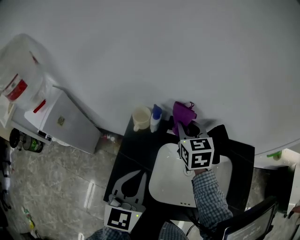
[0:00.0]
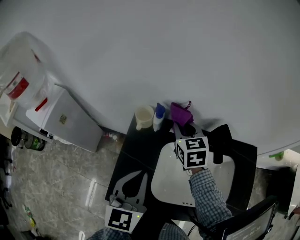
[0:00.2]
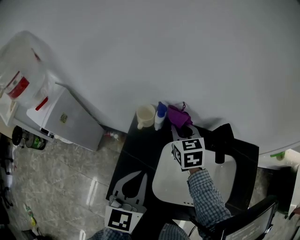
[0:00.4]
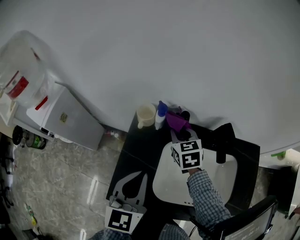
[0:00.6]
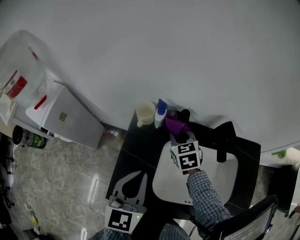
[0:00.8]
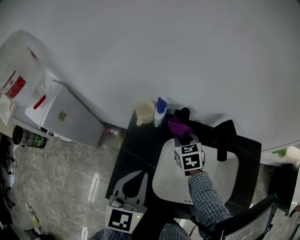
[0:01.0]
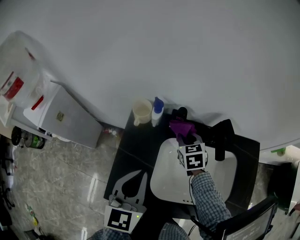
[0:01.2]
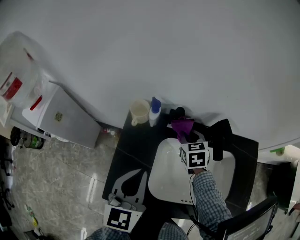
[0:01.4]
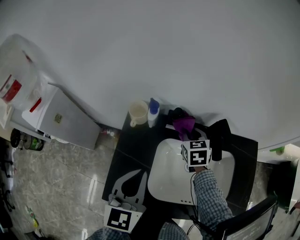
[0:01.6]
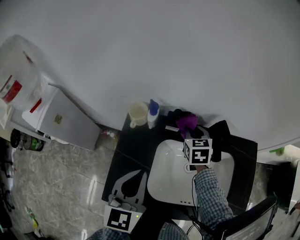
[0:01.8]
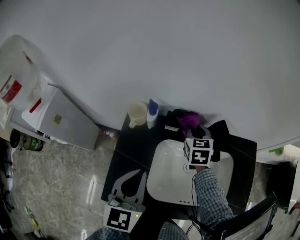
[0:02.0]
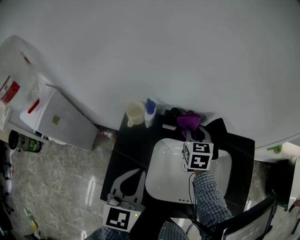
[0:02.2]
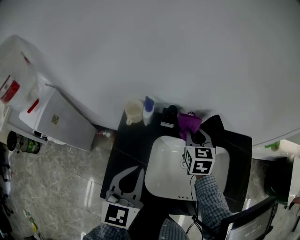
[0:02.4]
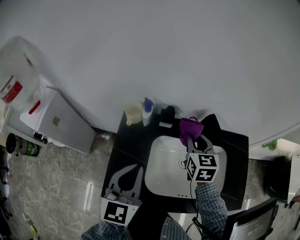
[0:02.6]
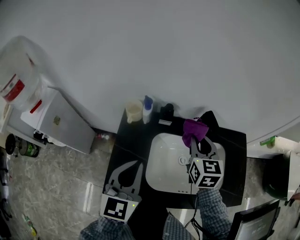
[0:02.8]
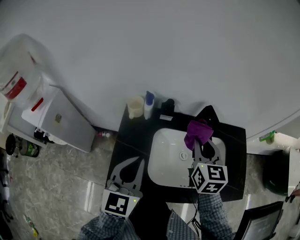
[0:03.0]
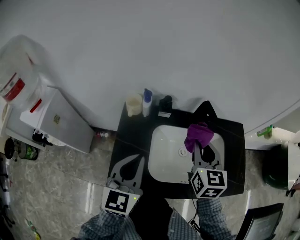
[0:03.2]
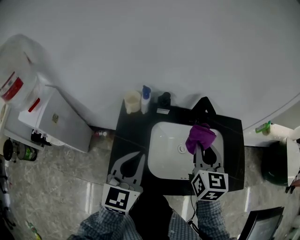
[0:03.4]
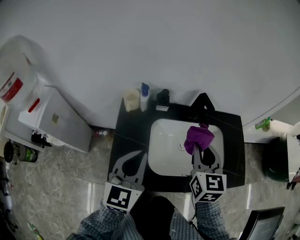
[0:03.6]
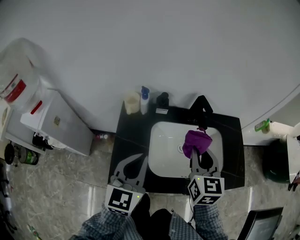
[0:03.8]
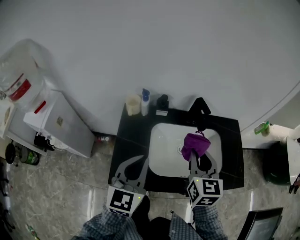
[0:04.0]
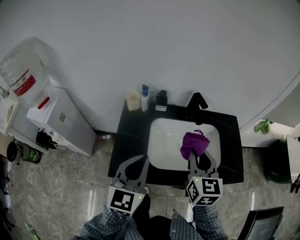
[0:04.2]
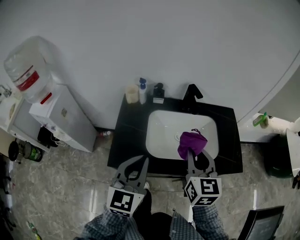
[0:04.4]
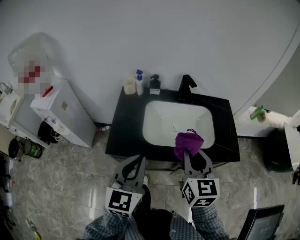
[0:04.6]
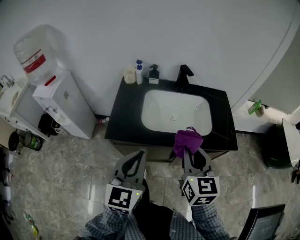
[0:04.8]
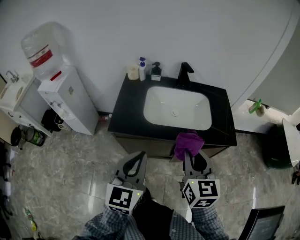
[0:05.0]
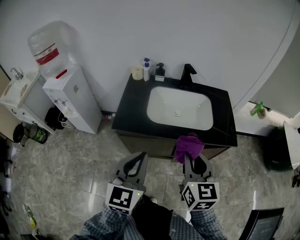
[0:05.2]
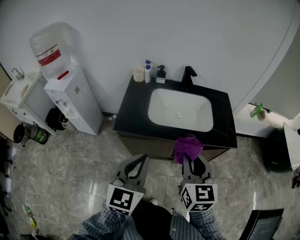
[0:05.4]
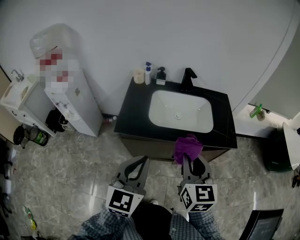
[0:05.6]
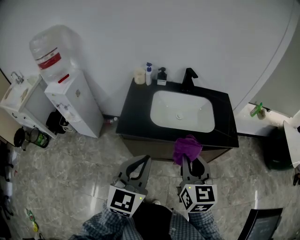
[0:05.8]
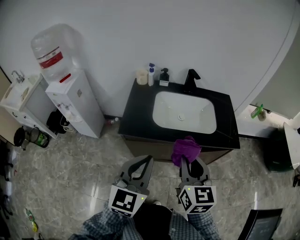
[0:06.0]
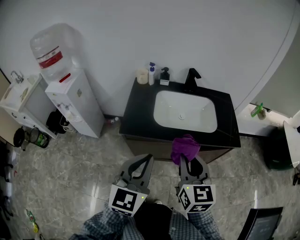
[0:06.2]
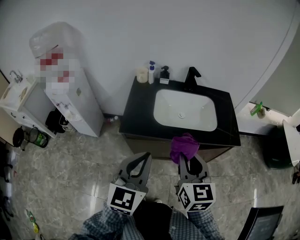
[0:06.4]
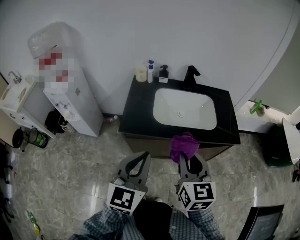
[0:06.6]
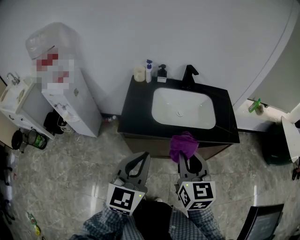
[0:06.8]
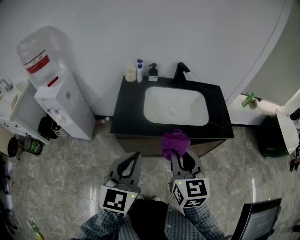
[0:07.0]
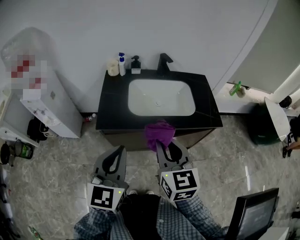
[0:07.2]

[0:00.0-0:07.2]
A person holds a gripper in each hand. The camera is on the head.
0:00.0 to 0:01.4: The right gripper shifts approximately 10 cm downward.
0:01.4 to 0:02.8: The right gripper travels upward and backward by approximately 15 cm, and rotates roughly 20 degrees.
0:02.8 to 0:04.4: The right gripper heads backward, covering about 25 cm. The left gripper moves backward, roughly 15 cm.
0:04.4 to 0:05.8: The two grippers go approximately 20 cm backward.
0:05.8 to 0:07.2: The grippers make only small movements.

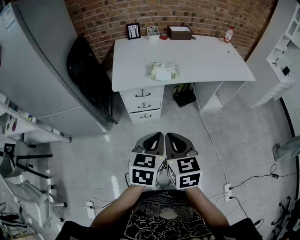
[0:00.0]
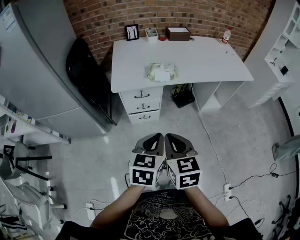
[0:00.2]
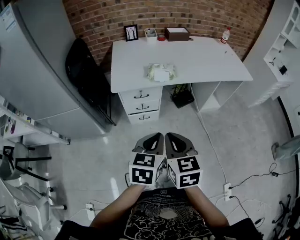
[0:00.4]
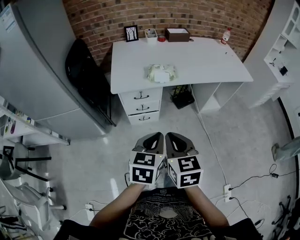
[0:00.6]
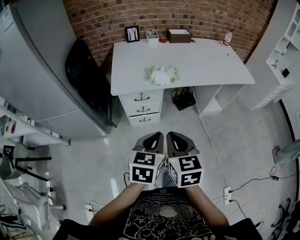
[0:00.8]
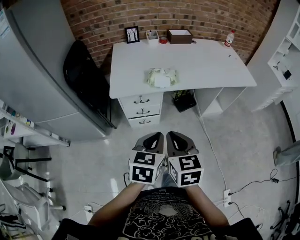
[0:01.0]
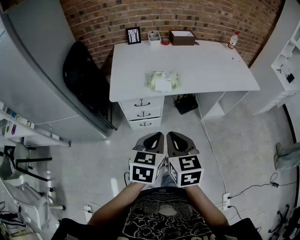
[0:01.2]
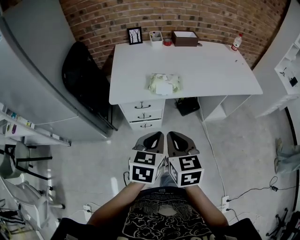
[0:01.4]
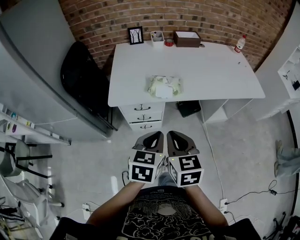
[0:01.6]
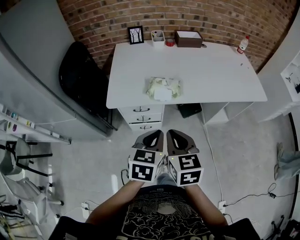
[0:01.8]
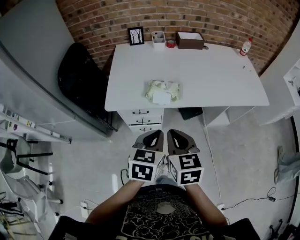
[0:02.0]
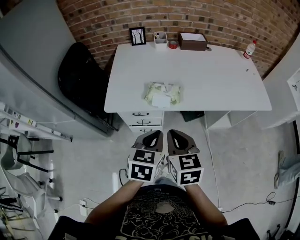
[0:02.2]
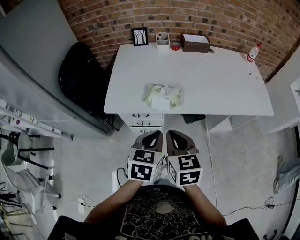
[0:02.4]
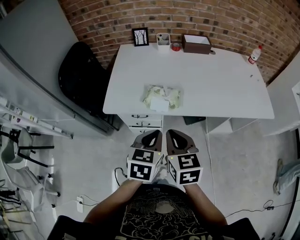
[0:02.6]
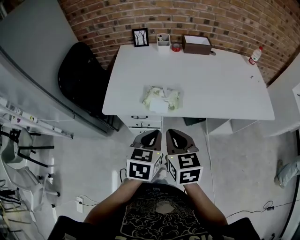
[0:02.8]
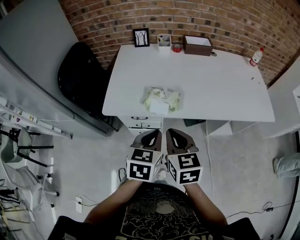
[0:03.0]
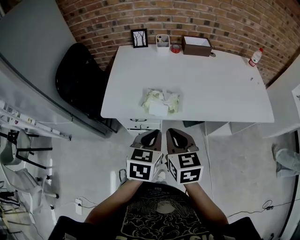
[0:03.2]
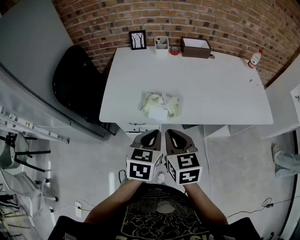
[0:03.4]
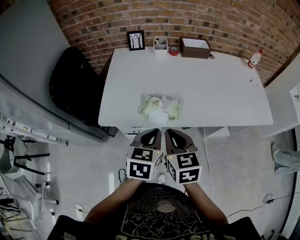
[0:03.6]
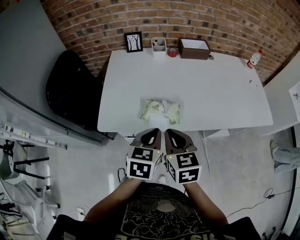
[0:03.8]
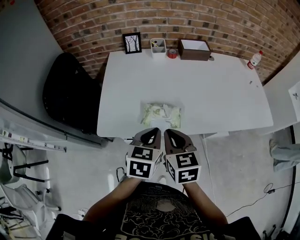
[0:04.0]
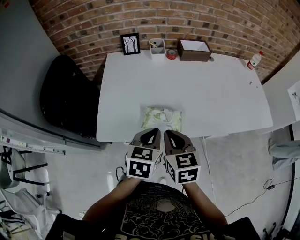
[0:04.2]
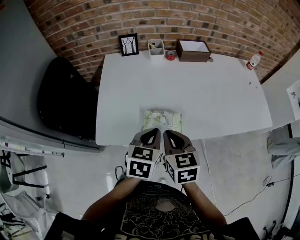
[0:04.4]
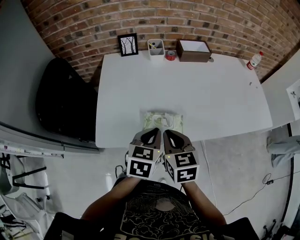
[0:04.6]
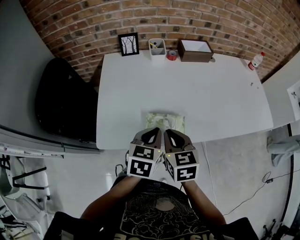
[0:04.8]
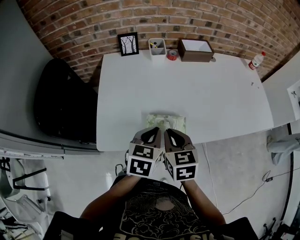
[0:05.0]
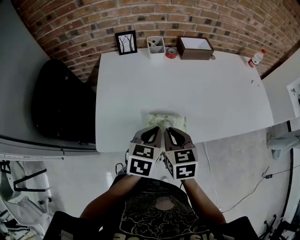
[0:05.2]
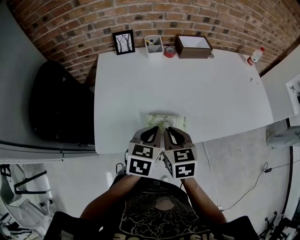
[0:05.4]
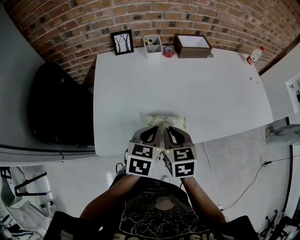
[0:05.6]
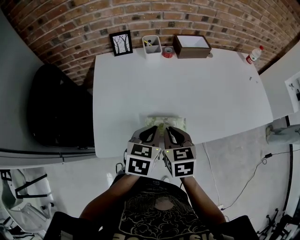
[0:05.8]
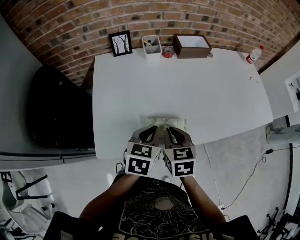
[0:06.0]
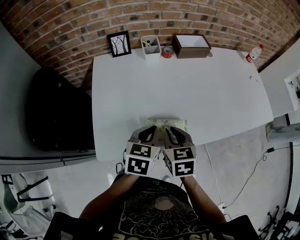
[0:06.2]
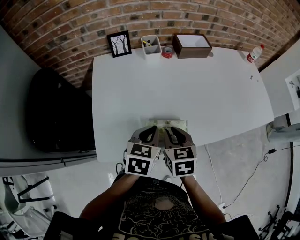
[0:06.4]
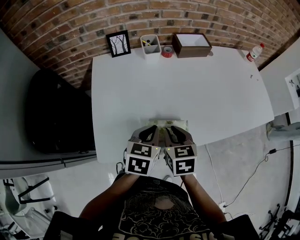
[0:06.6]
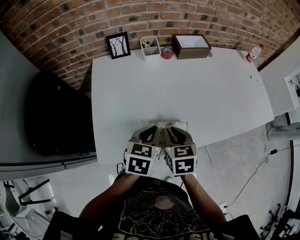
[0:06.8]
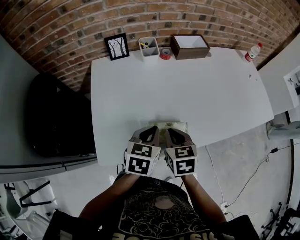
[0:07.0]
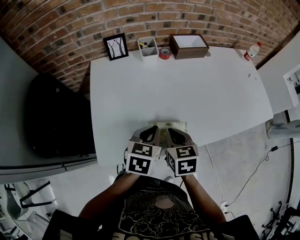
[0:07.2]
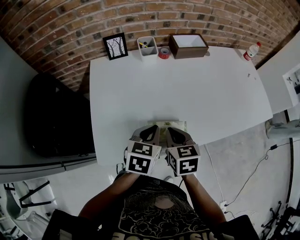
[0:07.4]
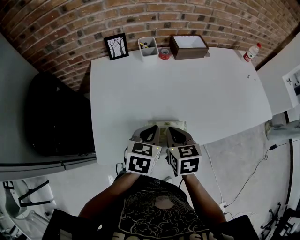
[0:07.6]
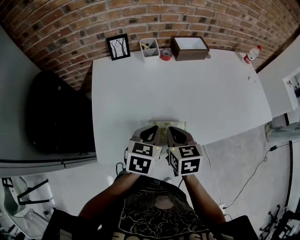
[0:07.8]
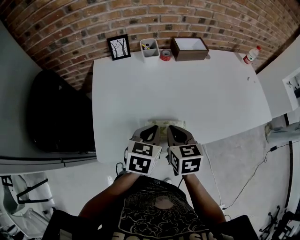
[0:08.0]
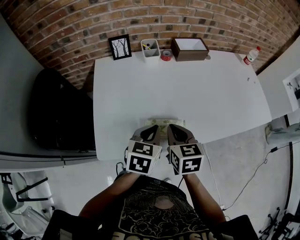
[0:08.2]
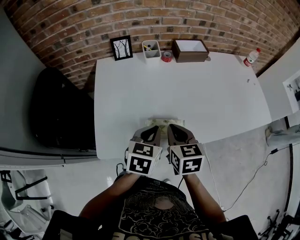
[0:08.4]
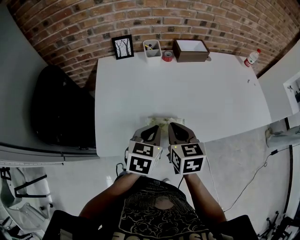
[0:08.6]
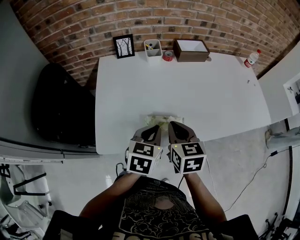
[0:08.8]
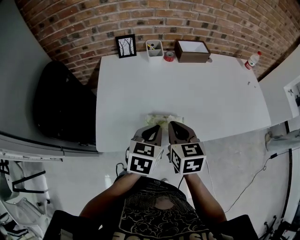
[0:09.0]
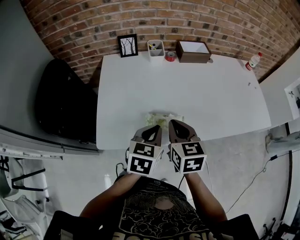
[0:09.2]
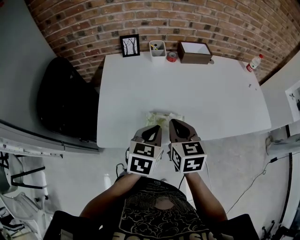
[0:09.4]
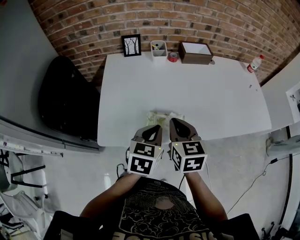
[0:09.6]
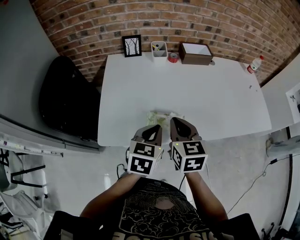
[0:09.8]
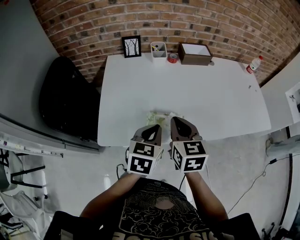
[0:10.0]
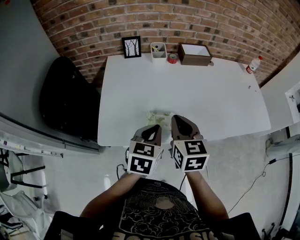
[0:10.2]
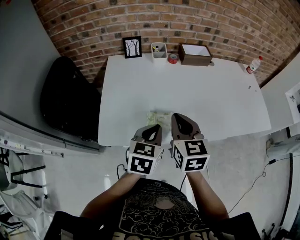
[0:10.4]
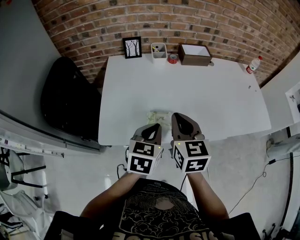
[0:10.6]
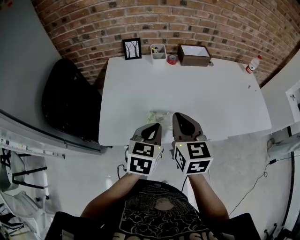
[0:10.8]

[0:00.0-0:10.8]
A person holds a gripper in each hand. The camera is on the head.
0:00.0 to 0:01.6: Both grippers travel together forward, about 15 cm.
0:01.6 to 0:03.0: The grippers both shift forward and to the right by some 15 cm.
0:03.0 to 0:04.6: Both grippers travel together forward, about 15 cm.
0:04.6 to 0:06.2: The two grippers go some 5 cm forward.
0:06.2 to 0:07.8: There are only small adjustments of the grippers.
0:07.8 to 0:09.2: The left gripper changes place by roughly 5 cm. The right gripper heads upward, covering some 5 cm.
0:09.2 to 0:10.8: The right gripper is displaced upward by some 5 cm.

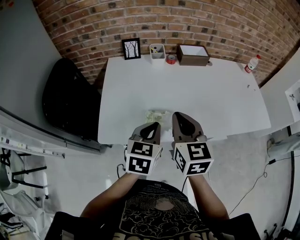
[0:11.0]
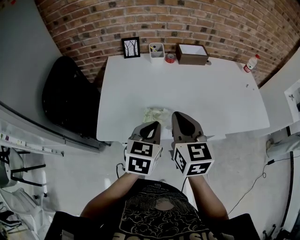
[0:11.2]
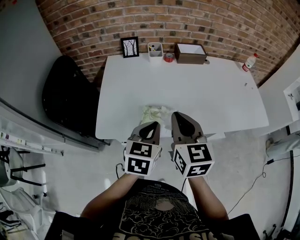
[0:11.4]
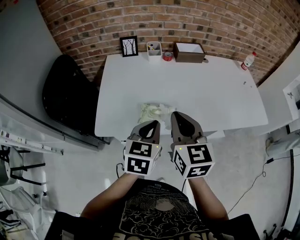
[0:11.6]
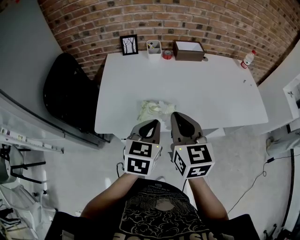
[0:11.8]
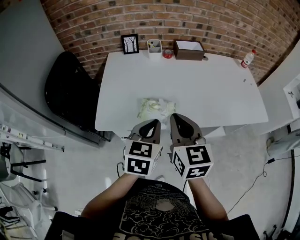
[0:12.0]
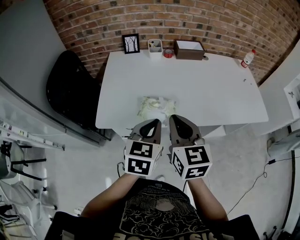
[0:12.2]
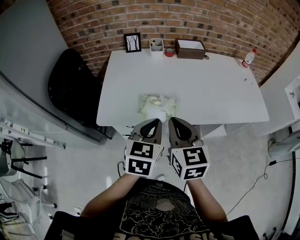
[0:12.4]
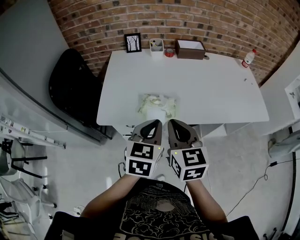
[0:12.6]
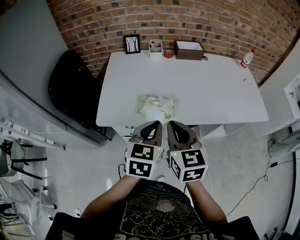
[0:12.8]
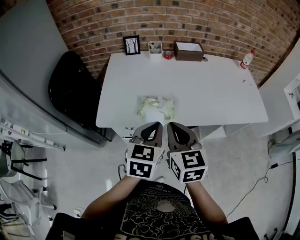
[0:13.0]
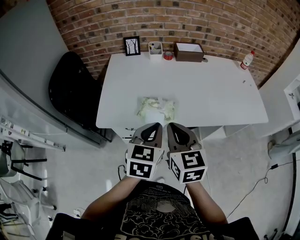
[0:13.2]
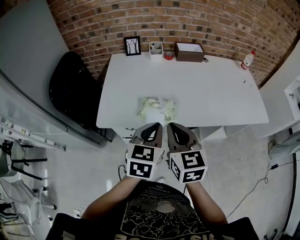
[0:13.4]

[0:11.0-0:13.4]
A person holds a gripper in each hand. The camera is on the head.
0:11.0 to 0:12.2: Both grippers travel together backward, about 10 cm.
0:12.2 to 0:13.4: There are only small adjustments of the grippers.

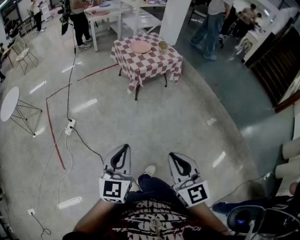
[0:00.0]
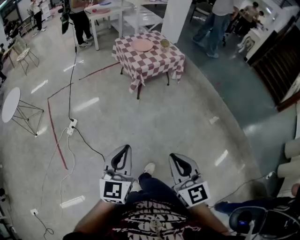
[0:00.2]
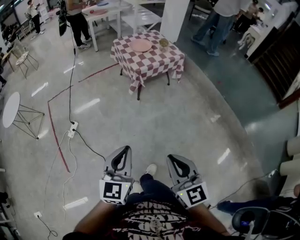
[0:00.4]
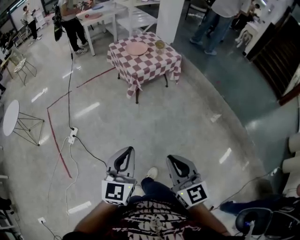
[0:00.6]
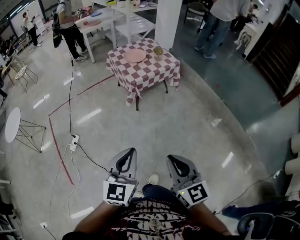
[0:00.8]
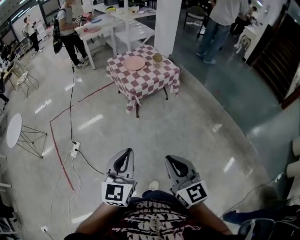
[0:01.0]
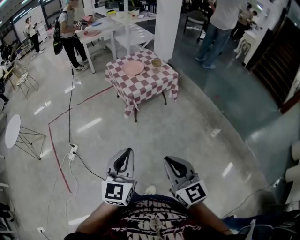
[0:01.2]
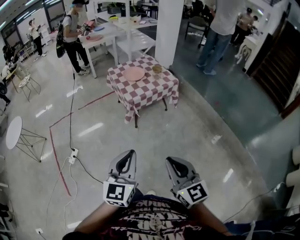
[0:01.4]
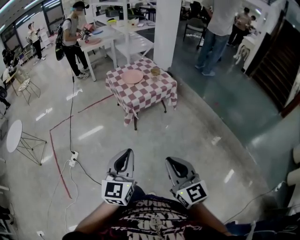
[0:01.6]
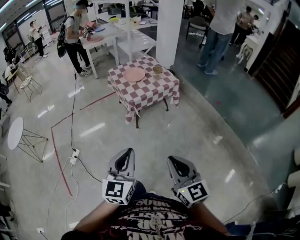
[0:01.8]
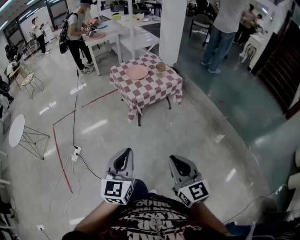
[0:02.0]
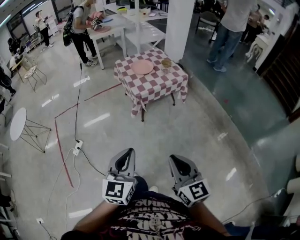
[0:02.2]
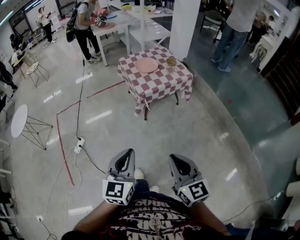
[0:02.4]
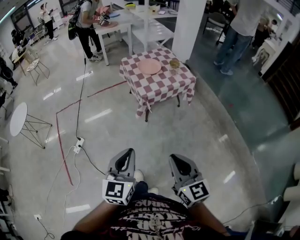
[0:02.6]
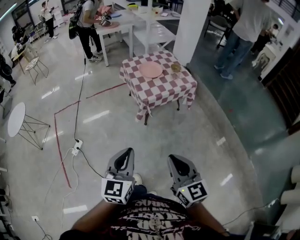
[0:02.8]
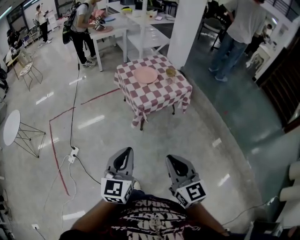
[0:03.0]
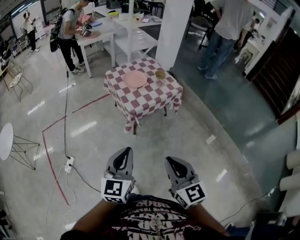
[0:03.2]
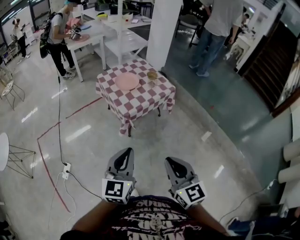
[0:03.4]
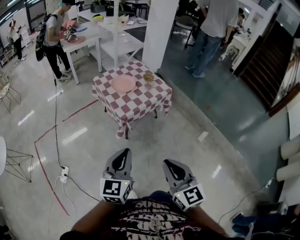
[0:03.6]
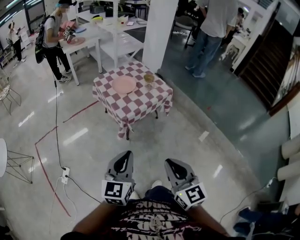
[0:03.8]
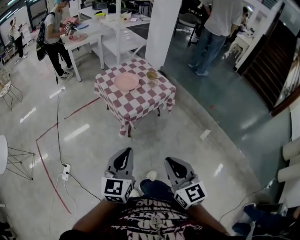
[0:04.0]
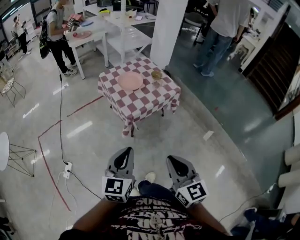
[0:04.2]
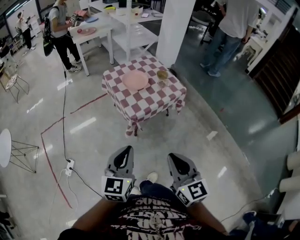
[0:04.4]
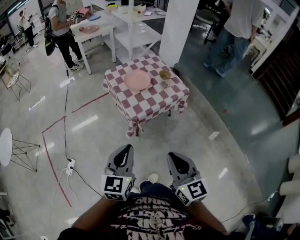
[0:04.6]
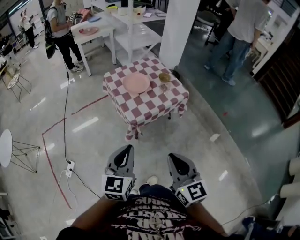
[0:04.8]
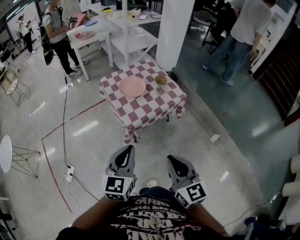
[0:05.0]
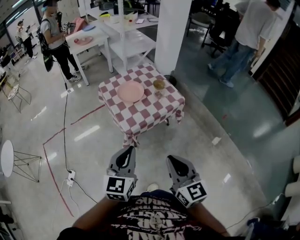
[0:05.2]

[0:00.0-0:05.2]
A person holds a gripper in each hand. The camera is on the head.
0:00.0 to 0:01.8: Both grippers travel together forward and to the right, some 20 cm.
0:01.8 to 0:03.4: Both grippers travel together forward, about 20 cm.
0:03.4 to 0:05.2: The two grippers go about 20 cm forward.
